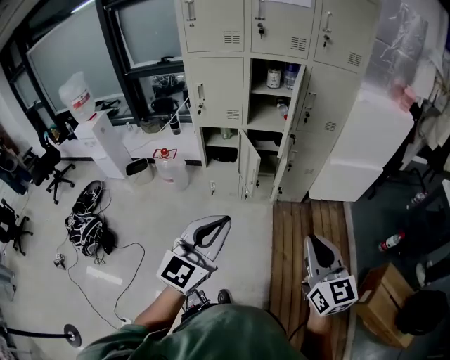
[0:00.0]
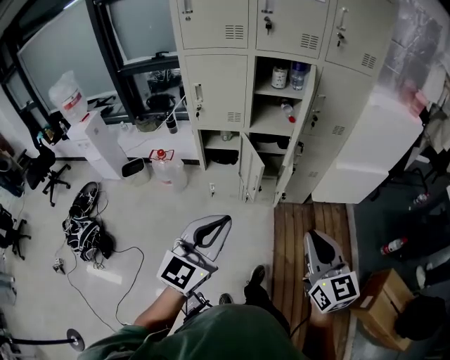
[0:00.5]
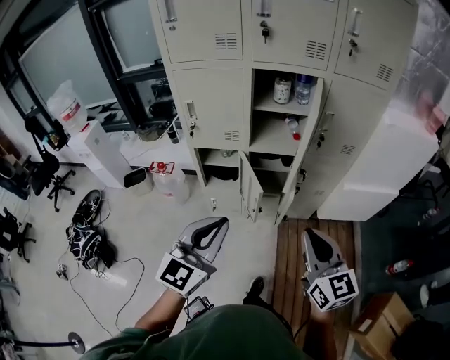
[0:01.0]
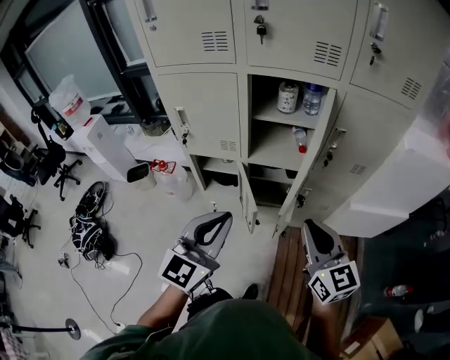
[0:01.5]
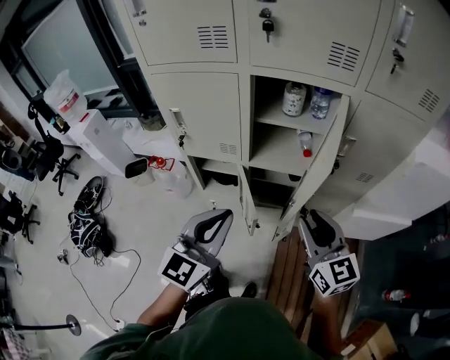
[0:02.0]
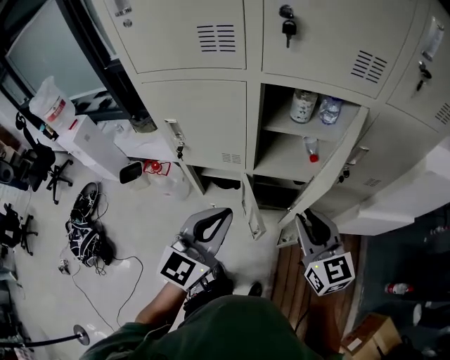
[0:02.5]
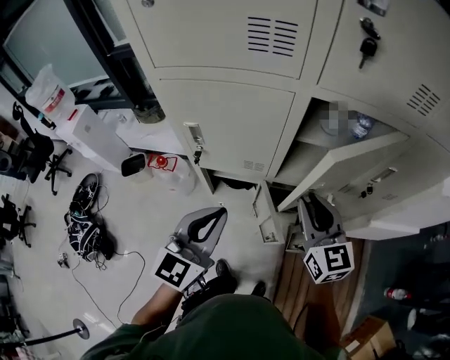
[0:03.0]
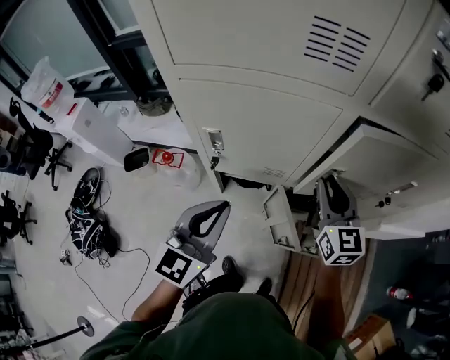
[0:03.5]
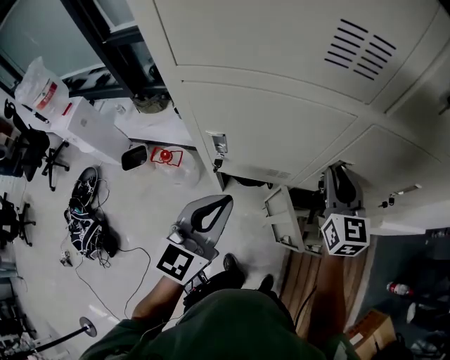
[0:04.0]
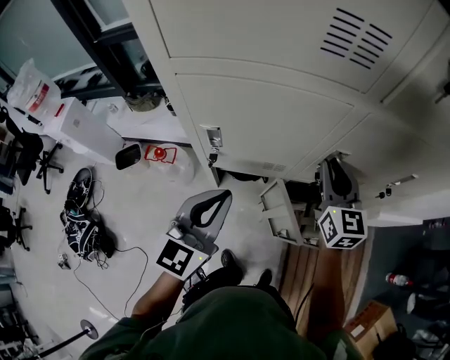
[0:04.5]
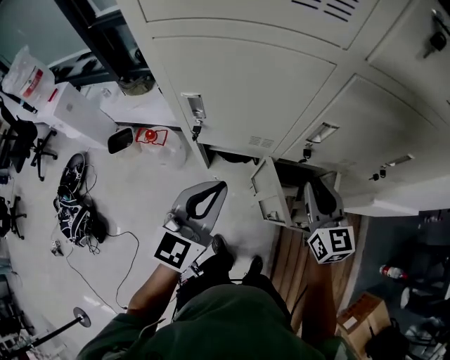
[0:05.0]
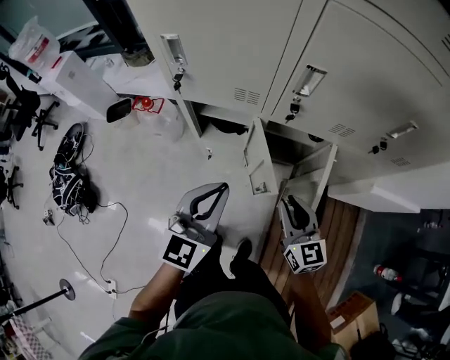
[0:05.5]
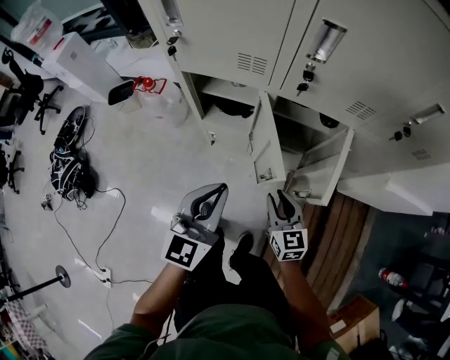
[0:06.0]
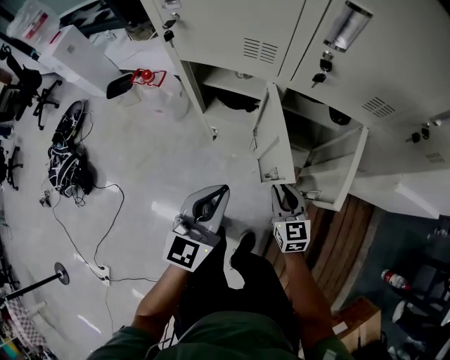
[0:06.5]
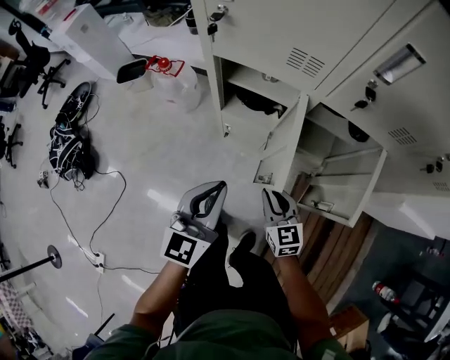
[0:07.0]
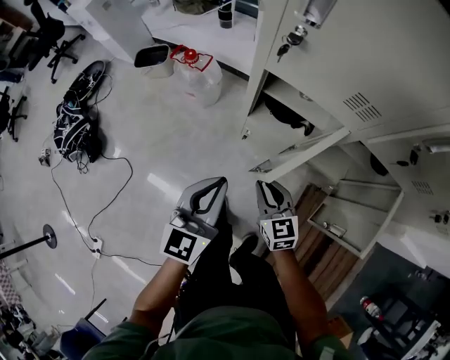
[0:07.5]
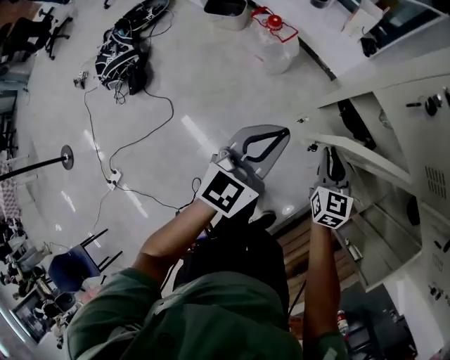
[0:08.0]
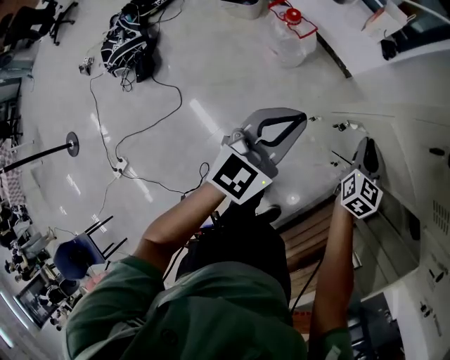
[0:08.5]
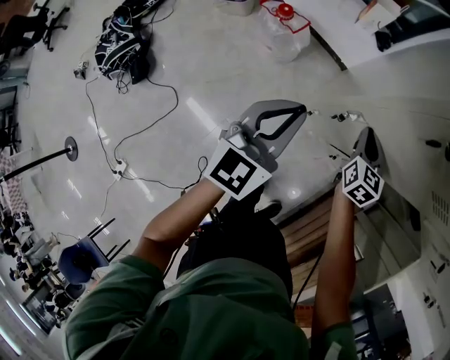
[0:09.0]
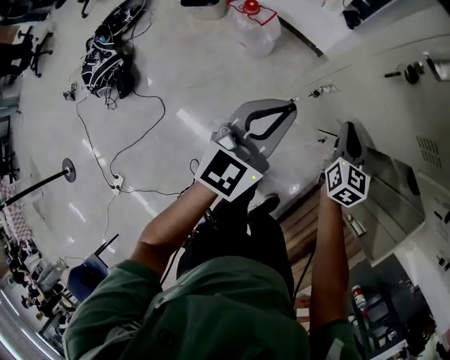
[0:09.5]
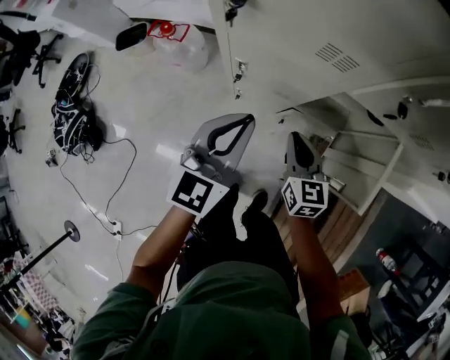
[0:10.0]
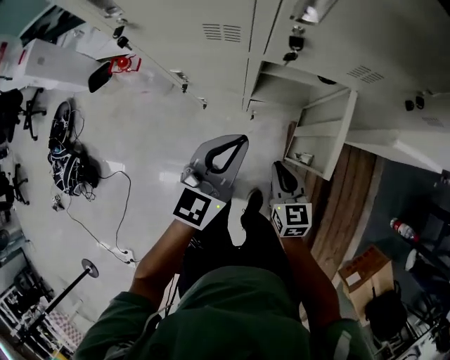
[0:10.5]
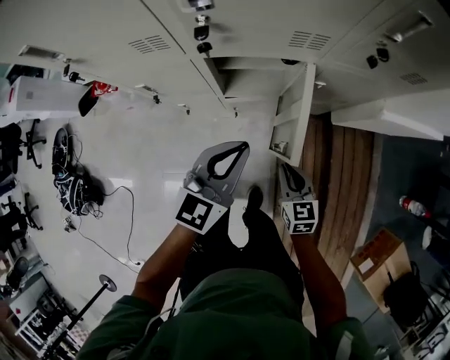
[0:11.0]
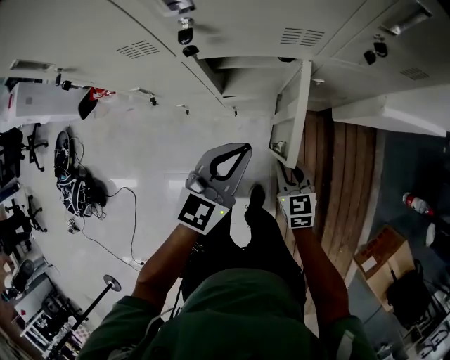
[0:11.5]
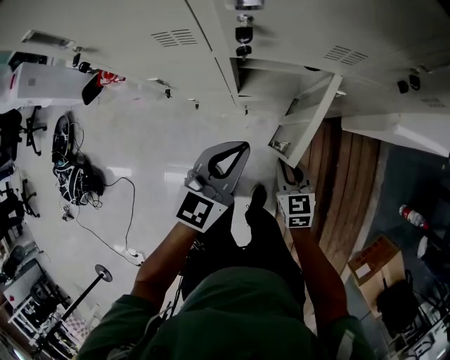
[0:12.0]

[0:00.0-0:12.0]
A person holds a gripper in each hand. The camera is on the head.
0:00.0 to 0:02.0: The grippers both shift forward by about 40 cm. The right gripper opens its fingers.
0:02.0 to 0:04.0: The right gripper travels forward and to the left by approximately 30 cm; the left gripper heads to the left and forward, covering about 25 cm.
0:04.0 to 0:06.0: The left gripper shifts approximately 30 cm downward, backward and to the right. Meanwhile the right gripper shifts roughly 40 cm downward and backward, and swivels approximately 20 degrees.
0:06.0 to 0:08.0: The grippers both shift to the left and forward by roughly 30 cm.
0:08.0 to 0:10.0: The left gripper is displaced to the right and upward by roughly 15 cm. Meanwhile the right gripper travels to the right, backward and upward by roughly 15 cm, and swivels approximately 20 degrees.
0:10.0 to 0:12.0: Both grippers move to the right, about 20 cm. The left gripper turns by some 20 degrees.

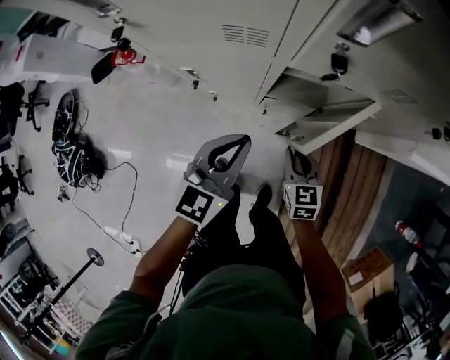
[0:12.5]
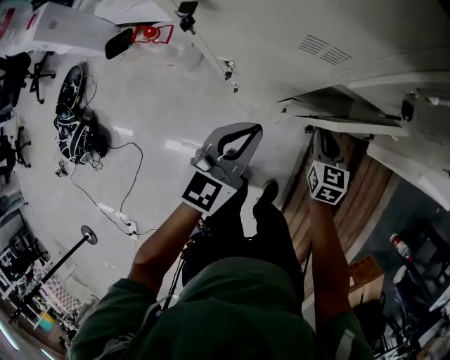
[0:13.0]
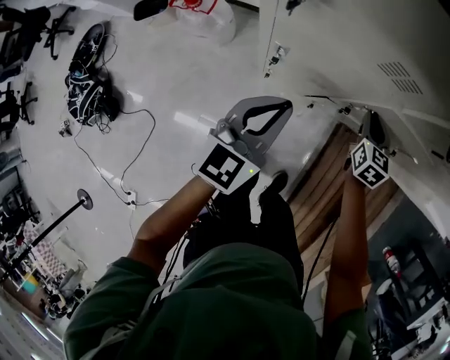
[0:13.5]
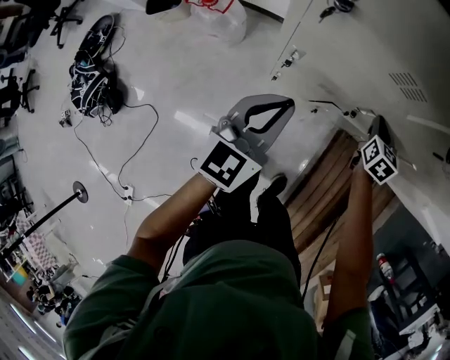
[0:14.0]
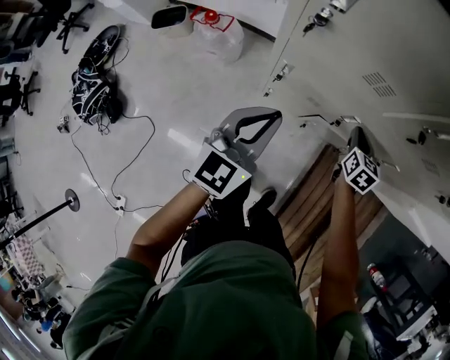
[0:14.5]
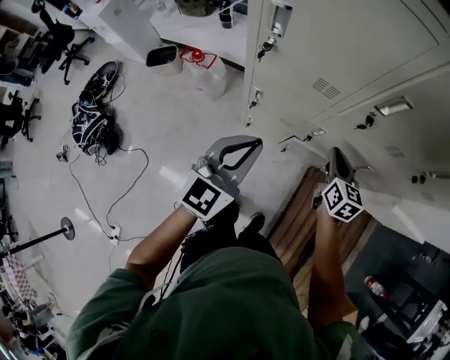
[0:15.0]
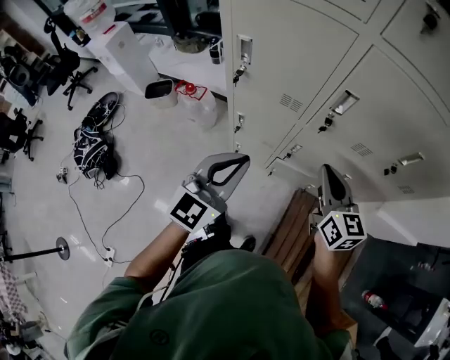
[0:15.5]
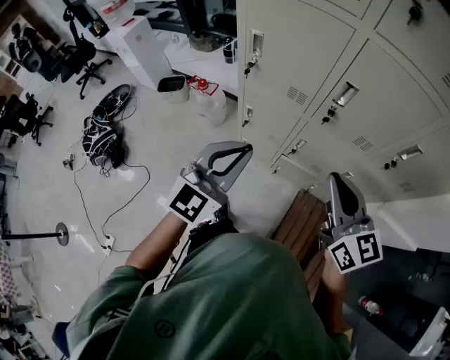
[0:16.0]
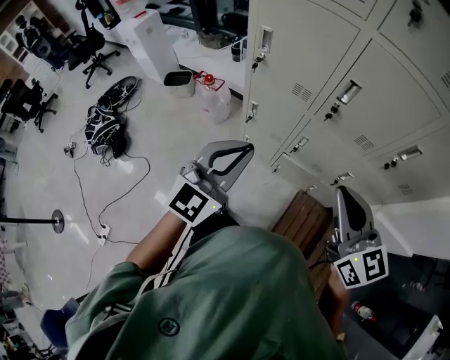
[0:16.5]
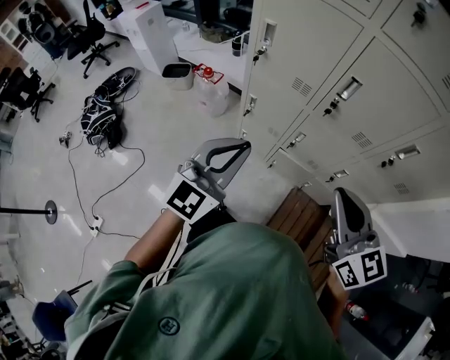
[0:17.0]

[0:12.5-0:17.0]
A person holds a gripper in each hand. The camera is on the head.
0:12.5 to 0:14.5: The left gripper shifts roughly 15 cm to the left. Meanwhile the right gripper moves forward, to the left and upward, some 15 cm.
0:14.5 to 0:17.0: The left gripper travels upward, backward and to the right by roughly 30 cm. Meanwhile the right gripper goes roughly 50 cm upward and backward, and rotates some 50 degrees.

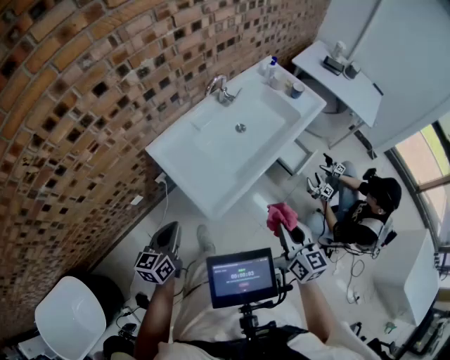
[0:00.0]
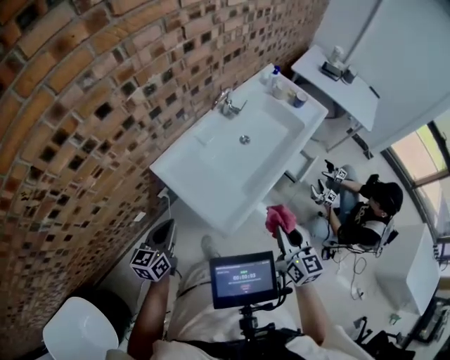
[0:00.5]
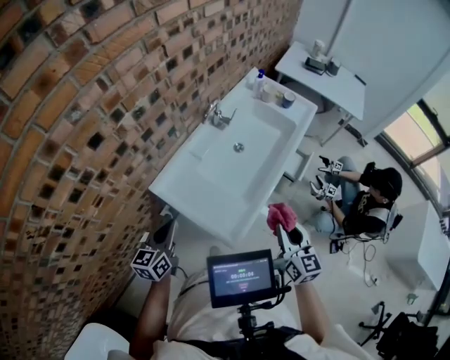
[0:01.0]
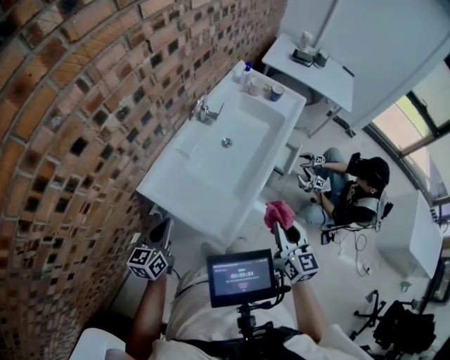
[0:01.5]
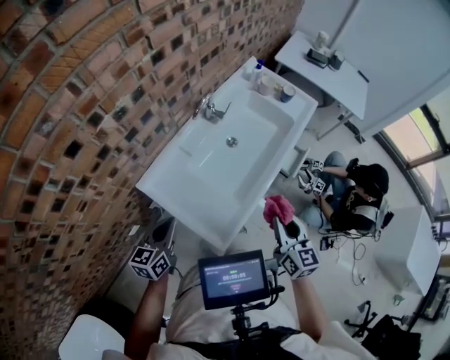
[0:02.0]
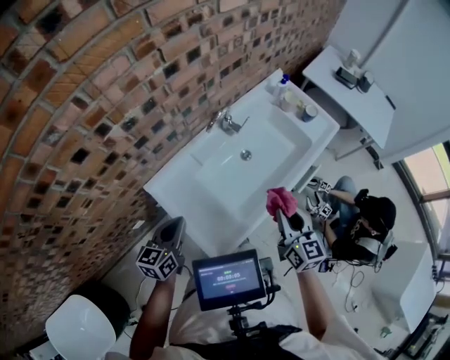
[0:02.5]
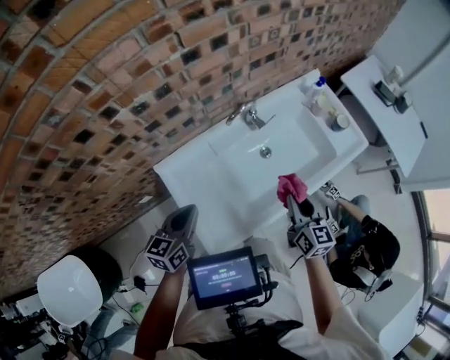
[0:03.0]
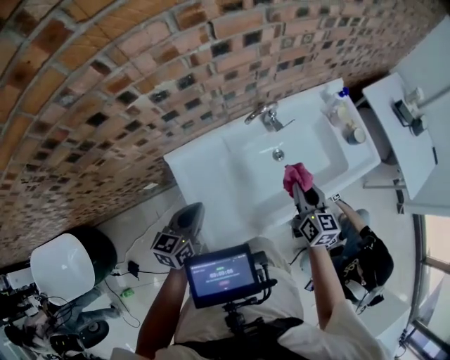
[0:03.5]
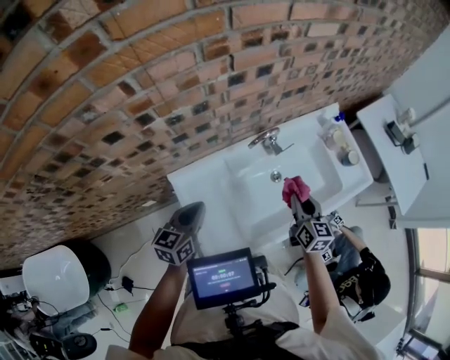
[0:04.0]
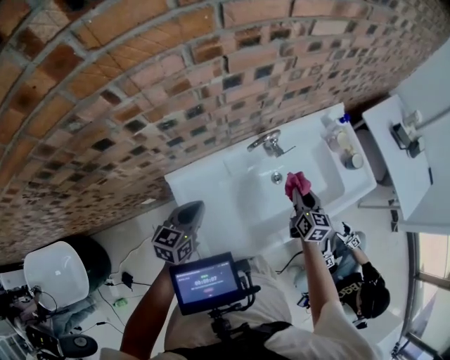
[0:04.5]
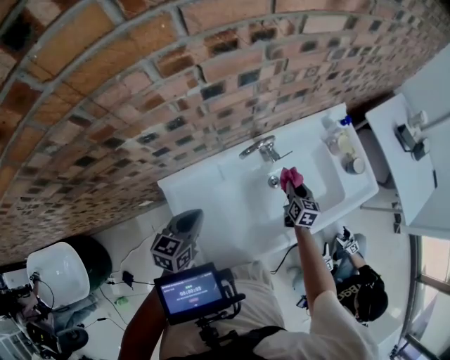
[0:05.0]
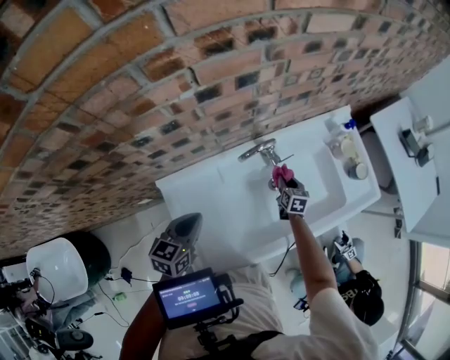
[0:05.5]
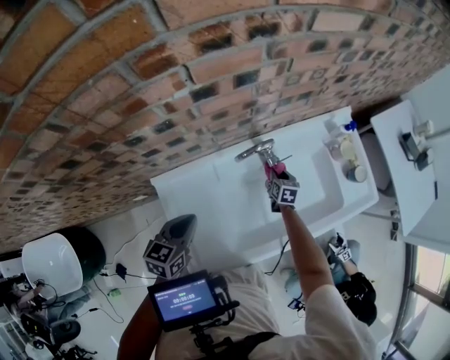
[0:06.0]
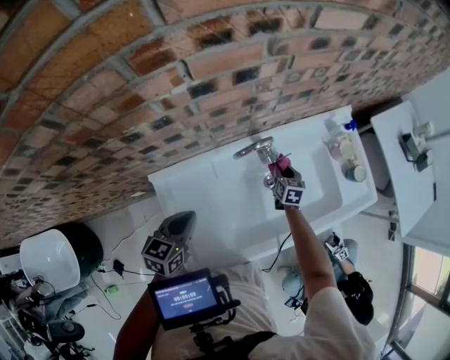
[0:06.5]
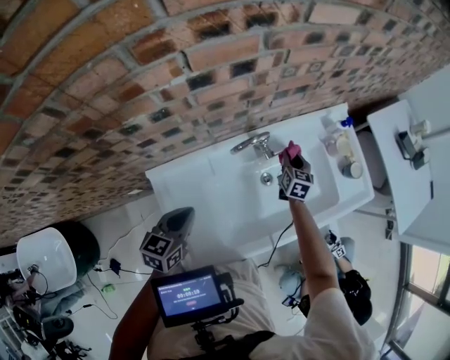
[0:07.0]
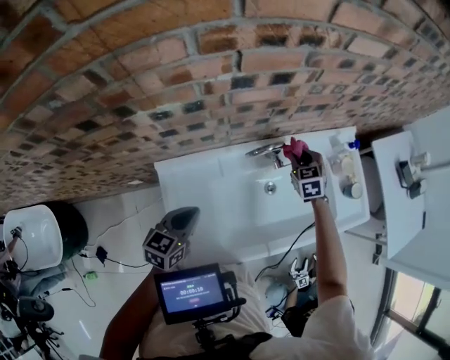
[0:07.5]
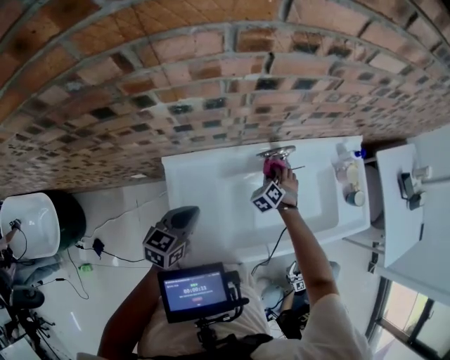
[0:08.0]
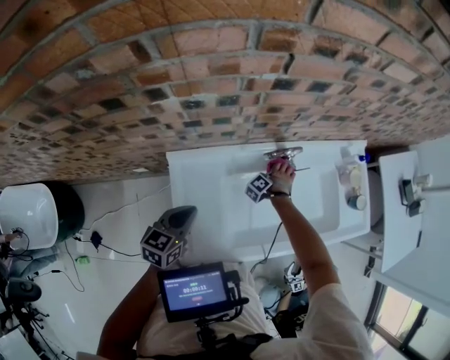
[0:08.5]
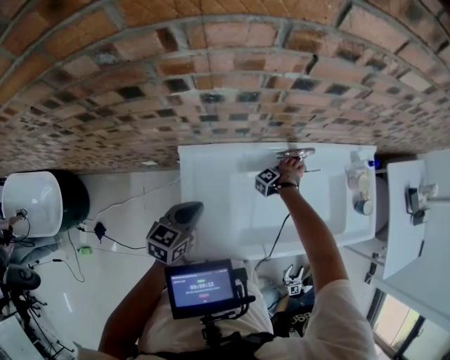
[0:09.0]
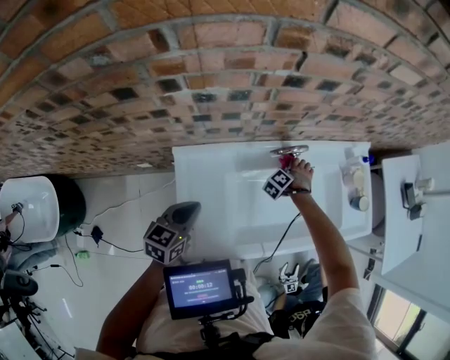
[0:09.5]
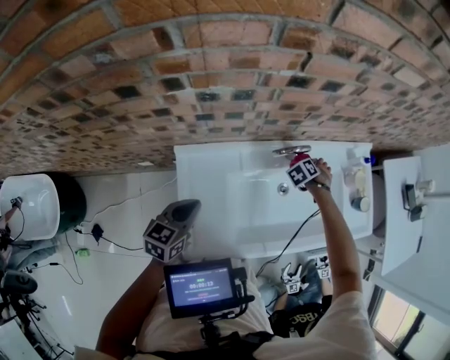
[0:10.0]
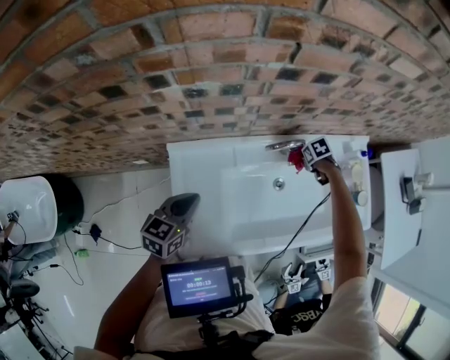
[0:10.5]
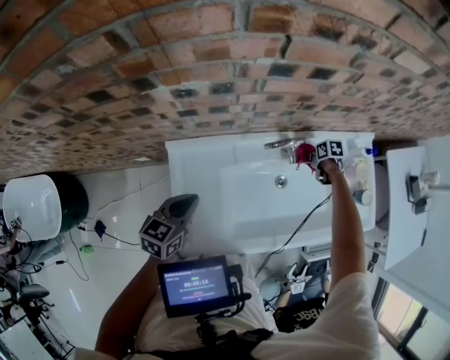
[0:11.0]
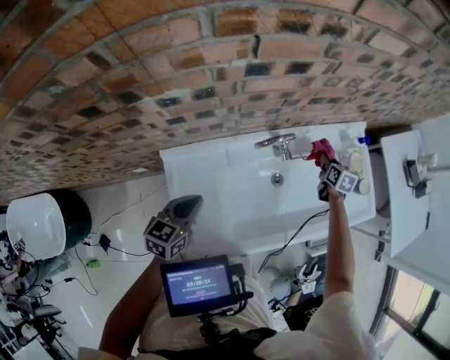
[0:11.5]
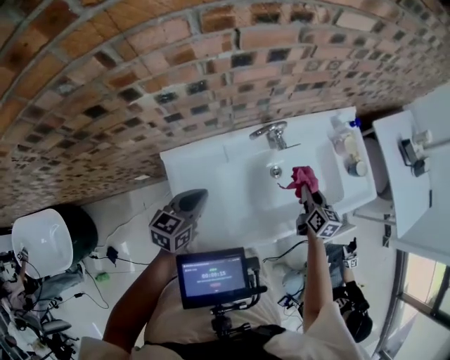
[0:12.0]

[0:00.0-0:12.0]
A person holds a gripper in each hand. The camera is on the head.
0:00.0 to 0:02.0: The right gripper is displaced forward and to the left by about 15 cm, while the left gripper heads forward, covering roughly 15 cm.
0:02.0 to 0:04.0: The left gripper moves some 10 cm, and swivels approximately 20 degrees. The right gripper shifts by about 30 cm, and turns by approximately 20 degrees.
0:04.0 to 0:06.0: The left gripper shifts some 5 cm downward; the right gripper goes some 30 cm downward and forward, and swivels roughly 20 degrees.
0:06.0 to 0:08.0: The right gripper goes some 10 cm to the left and upward, and rotates around the line of its fingers by roughly 70 degrees, counterclockwise from behind.
0:08.0 to 0:10.0: The right gripper shifts by about 10 cm, and changes its angle by some 20 degrees.
0:10.0 to 0:12.0: The right gripper moves approximately 20 cm, and tips its fingers upward by roughly 40 degrees. The left gripper shifts by some 5 cm.
